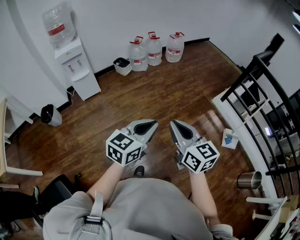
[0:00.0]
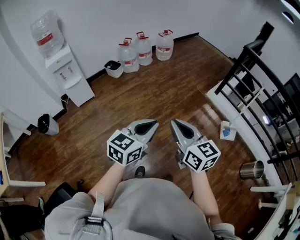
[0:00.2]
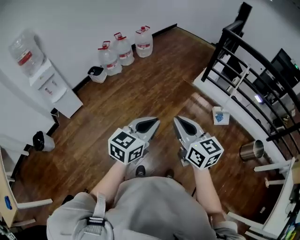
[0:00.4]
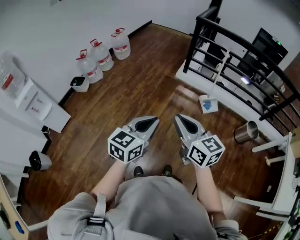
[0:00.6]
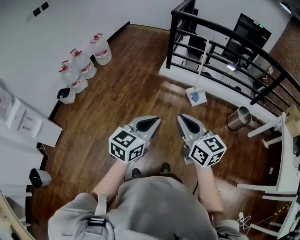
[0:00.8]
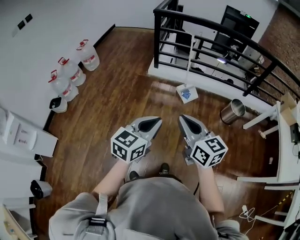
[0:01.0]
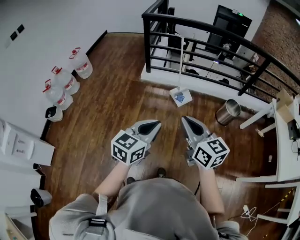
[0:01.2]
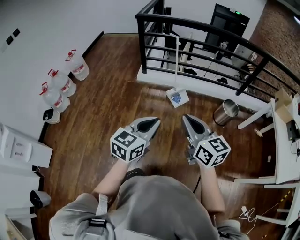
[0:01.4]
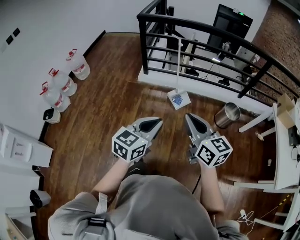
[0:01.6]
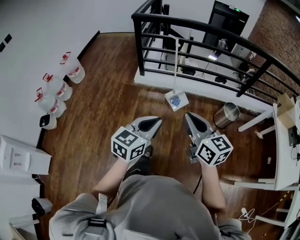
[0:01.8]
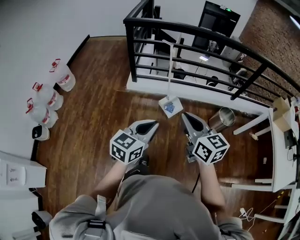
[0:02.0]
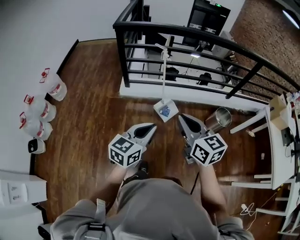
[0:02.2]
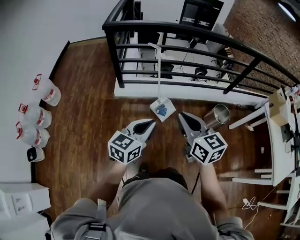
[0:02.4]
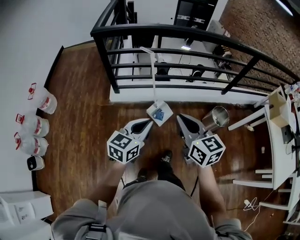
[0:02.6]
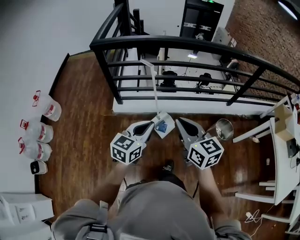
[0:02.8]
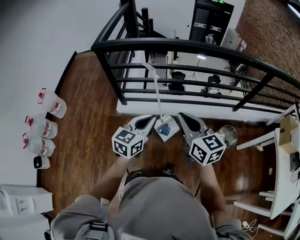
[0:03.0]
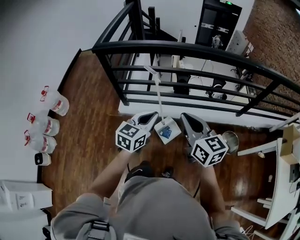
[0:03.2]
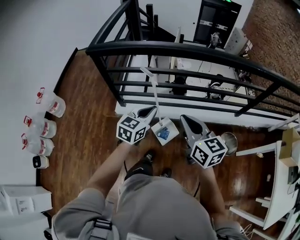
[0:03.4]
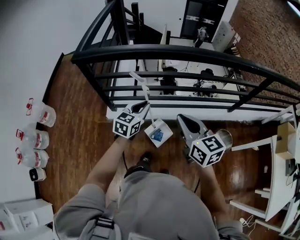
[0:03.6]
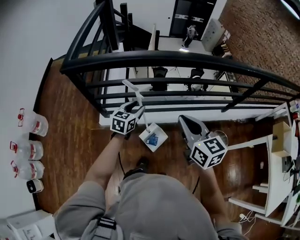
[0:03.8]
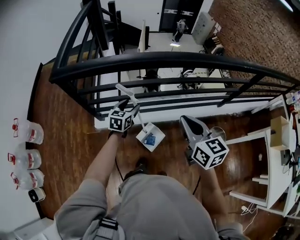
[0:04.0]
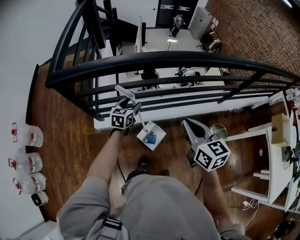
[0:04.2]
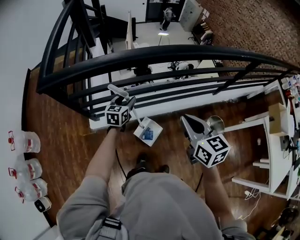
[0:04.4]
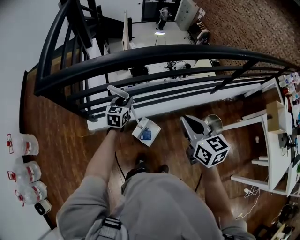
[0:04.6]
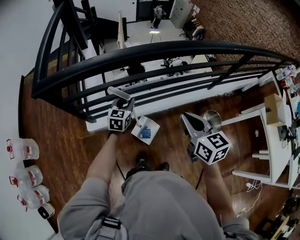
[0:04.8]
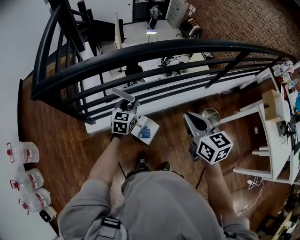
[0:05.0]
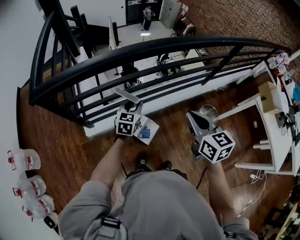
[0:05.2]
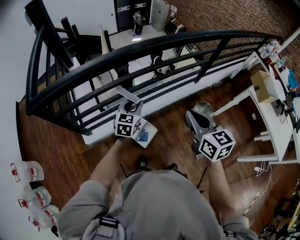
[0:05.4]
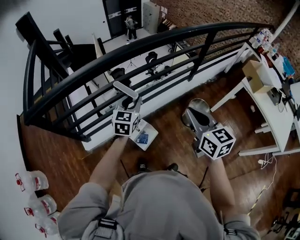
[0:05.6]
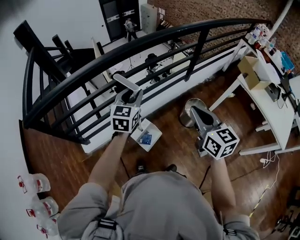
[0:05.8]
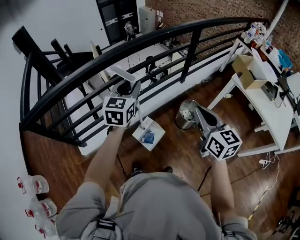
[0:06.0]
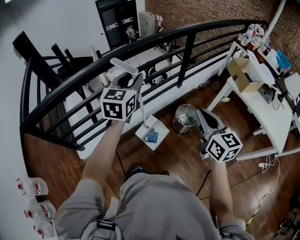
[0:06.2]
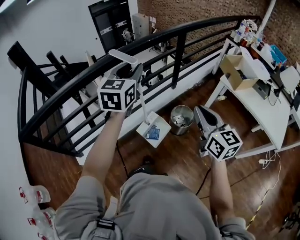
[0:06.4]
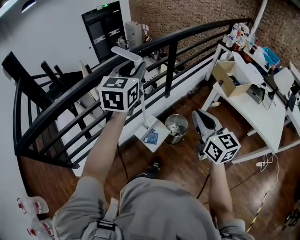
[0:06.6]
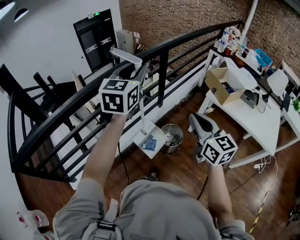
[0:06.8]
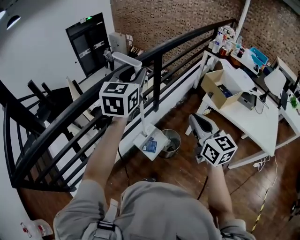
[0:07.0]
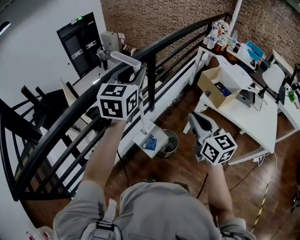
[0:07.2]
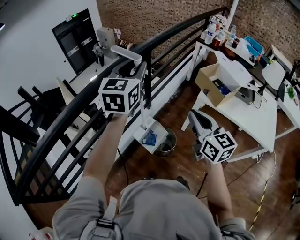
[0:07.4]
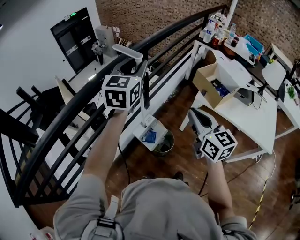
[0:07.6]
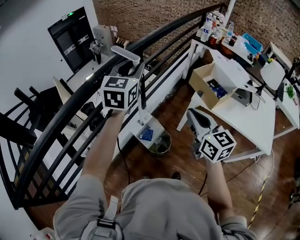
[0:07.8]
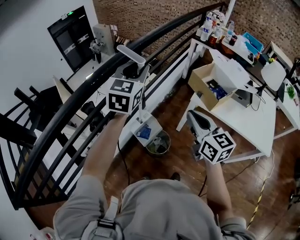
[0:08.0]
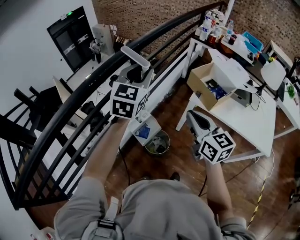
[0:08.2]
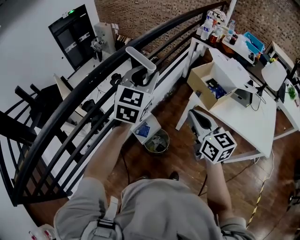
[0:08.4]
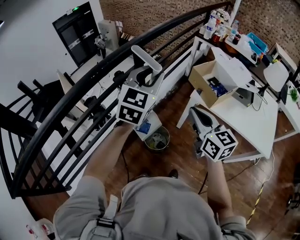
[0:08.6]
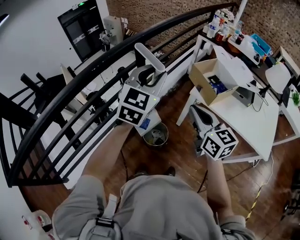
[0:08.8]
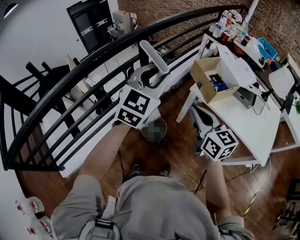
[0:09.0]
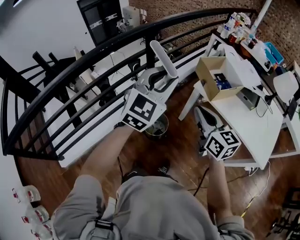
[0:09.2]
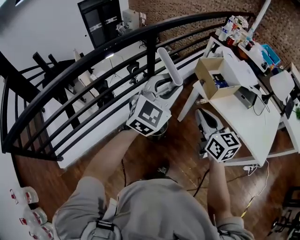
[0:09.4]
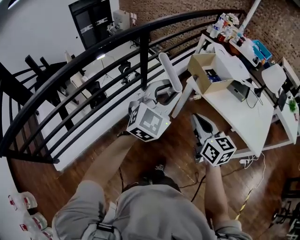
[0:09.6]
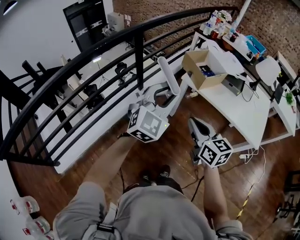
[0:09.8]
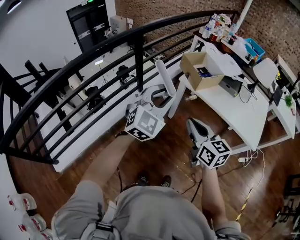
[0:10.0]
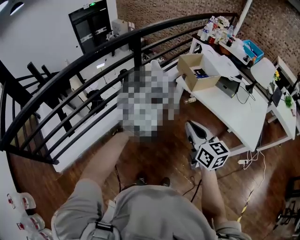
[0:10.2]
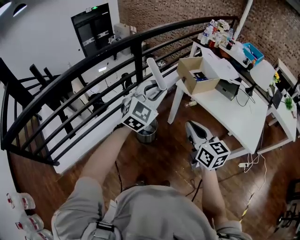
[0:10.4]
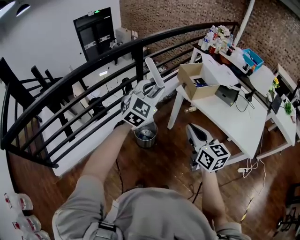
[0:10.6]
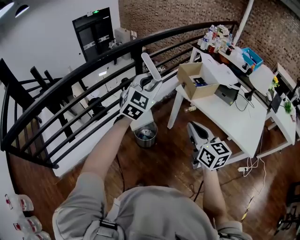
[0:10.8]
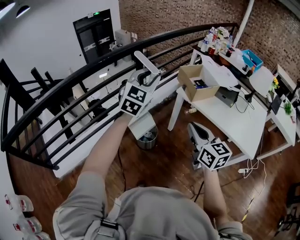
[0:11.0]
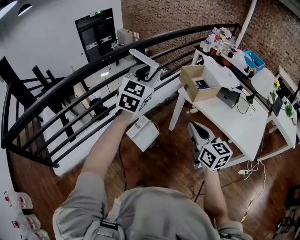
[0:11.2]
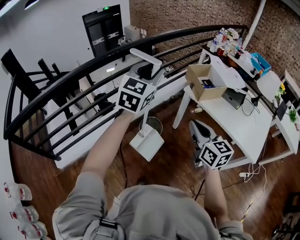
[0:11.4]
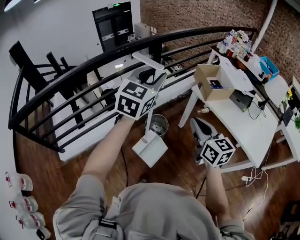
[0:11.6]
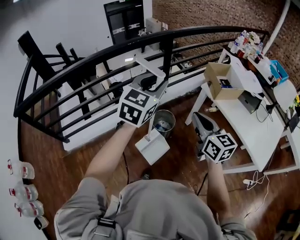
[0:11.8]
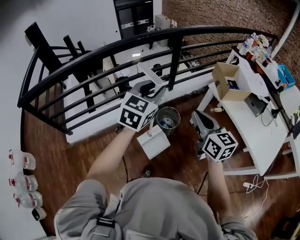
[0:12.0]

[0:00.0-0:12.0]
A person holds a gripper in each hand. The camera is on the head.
0:00.0 to 0:01.6: The two grippers travel together, approximately 50 cm. The right gripper swivels approximately 40 degrees; the left gripper changes its angle by some 40 degrees.
0:01.6 to 0:03.0: Both grippers are carried forward, about 50 cm.
0:03.0 to 0:04.4: The right gripper heads forward, covering about 25 cm, and changes its angle by roughly 20 degrees. The left gripper moves forward and downward, about 40 cm, and opens up.
0:04.4 to 0:06.0: The left gripper moves to the right and upward, about 40 cm, changes its angle by some 30 degrees, and closes; the right gripper moves to the right, roughly 35 cm, and swivels about 30 degrees.
0:06.0 to 0:07.6: The right gripper heads forward and to the right, covering approximately 30 cm, while the left gripper shifts about 50 cm to the right, forward and upward, and rotates some 20 degrees.
0:07.6 to 0:09.0: The right gripper moves to the right, roughly 10 cm. Meanwhile the left gripper is displaced to the right and backward by some 20 cm.
0:09.0 to 0:10.4: The grippers both shift backward and to the right by roughly 20 cm.
0:10.4 to 0:12.0: The right gripper goes roughly 10 cm to the left. The left gripper heads to the left, covering approximately 15 cm, and turns by roughly 30 degrees.

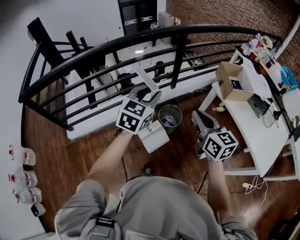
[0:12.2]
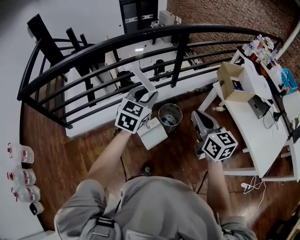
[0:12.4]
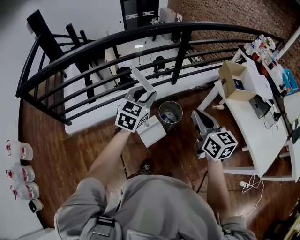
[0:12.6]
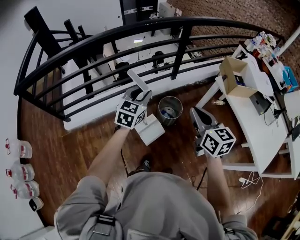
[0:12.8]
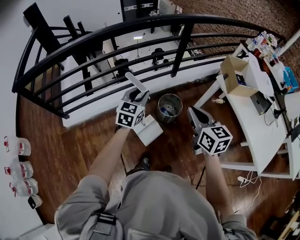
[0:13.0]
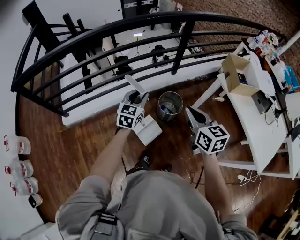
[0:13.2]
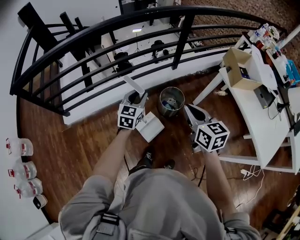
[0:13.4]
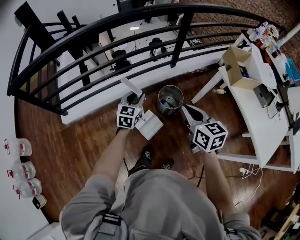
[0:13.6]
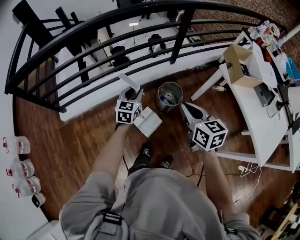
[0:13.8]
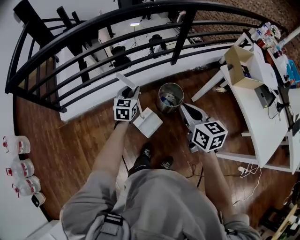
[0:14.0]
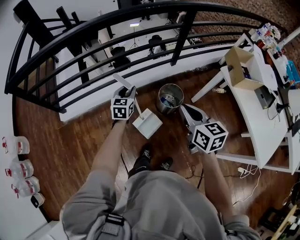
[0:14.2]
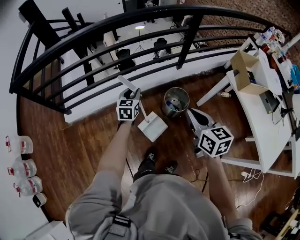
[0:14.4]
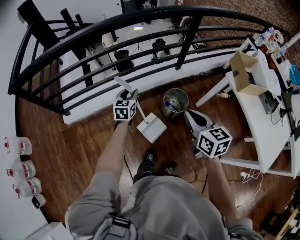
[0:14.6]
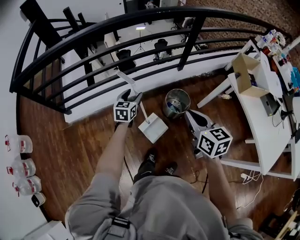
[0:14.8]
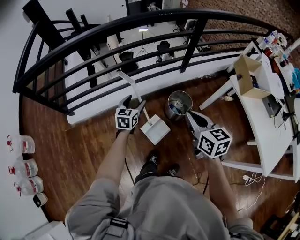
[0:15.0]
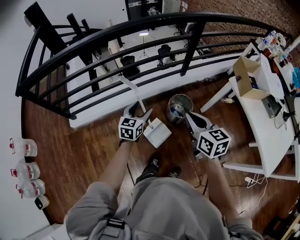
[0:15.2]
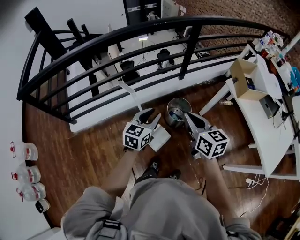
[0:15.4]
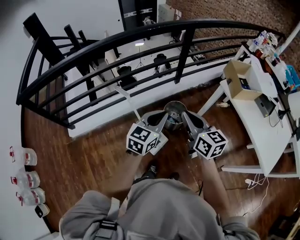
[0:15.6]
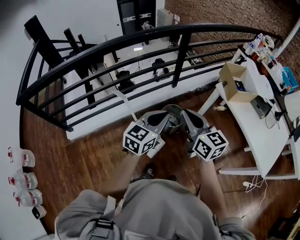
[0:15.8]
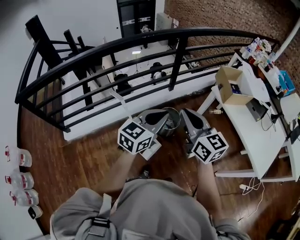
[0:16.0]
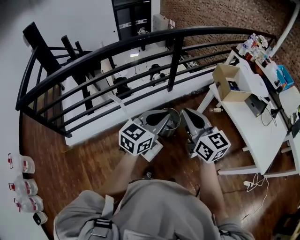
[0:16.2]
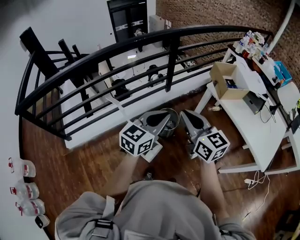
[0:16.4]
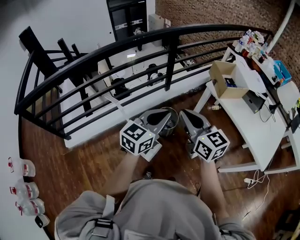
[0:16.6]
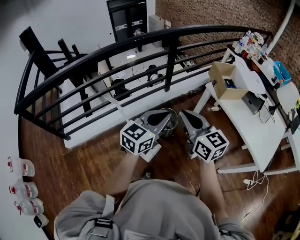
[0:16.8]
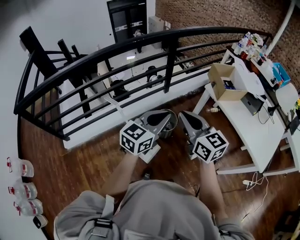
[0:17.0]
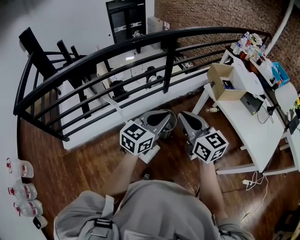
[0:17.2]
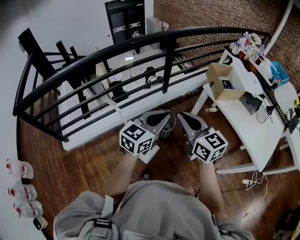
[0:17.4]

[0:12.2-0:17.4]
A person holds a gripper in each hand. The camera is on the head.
0:12.2 to 0:14.0: The left gripper goes roughly 30 cm downward and to the left, and rotates approximately 20 degrees, while the right gripper travels downward and to the left by roughly 15 cm.
0:14.0 to 0:15.6: The right gripper ends up approximately 5 cm from where it was, while the left gripper goes about 20 cm upward, to the right and backward, swivels about 20 degrees, and closes its fingers.
0:15.6 to 0:17.4: The right gripper travels upward and to the right by approximately 10 cm. Meanwhile the left gripper travels to the right and upward by roughly 10 cm.

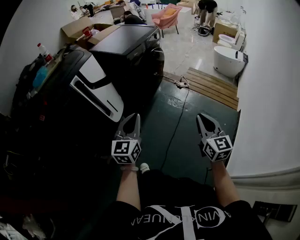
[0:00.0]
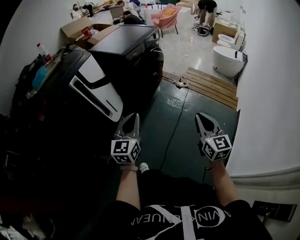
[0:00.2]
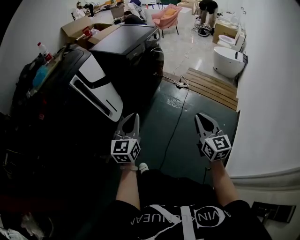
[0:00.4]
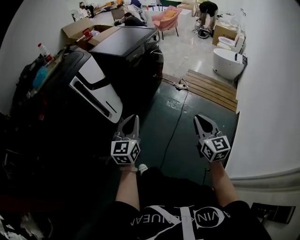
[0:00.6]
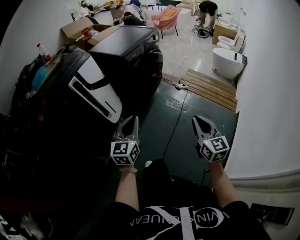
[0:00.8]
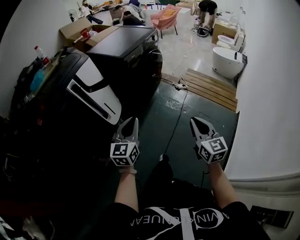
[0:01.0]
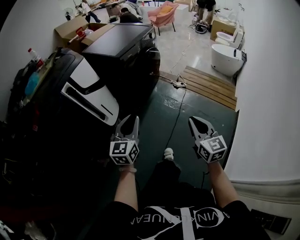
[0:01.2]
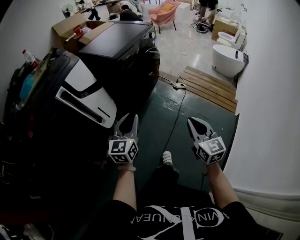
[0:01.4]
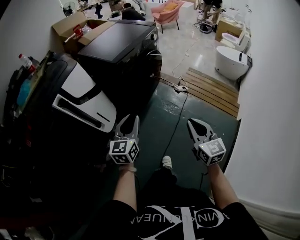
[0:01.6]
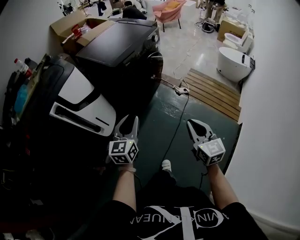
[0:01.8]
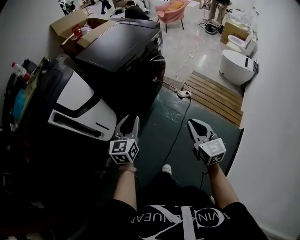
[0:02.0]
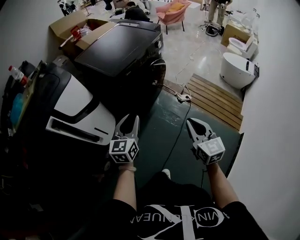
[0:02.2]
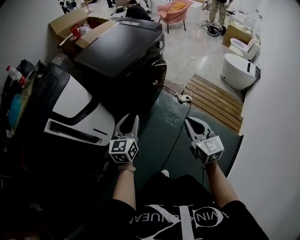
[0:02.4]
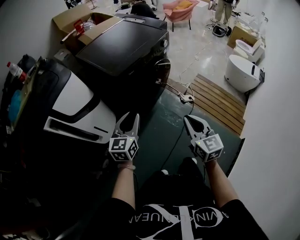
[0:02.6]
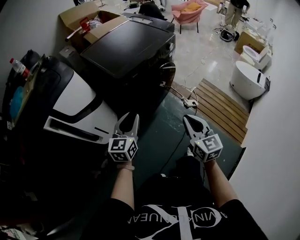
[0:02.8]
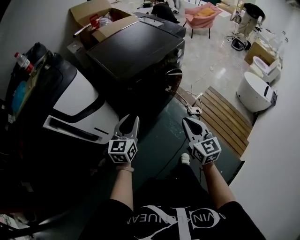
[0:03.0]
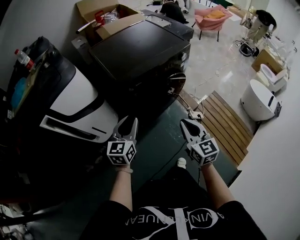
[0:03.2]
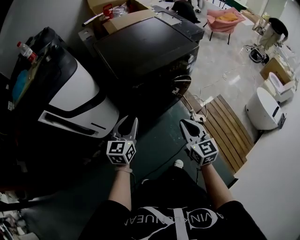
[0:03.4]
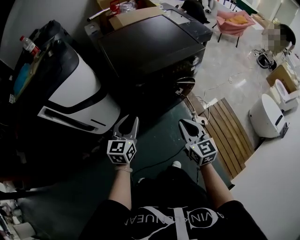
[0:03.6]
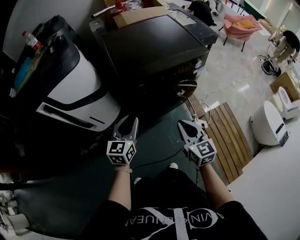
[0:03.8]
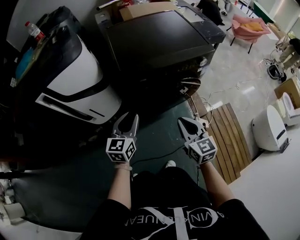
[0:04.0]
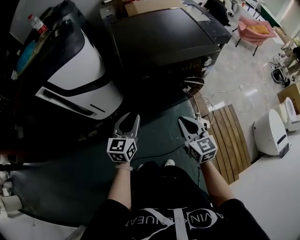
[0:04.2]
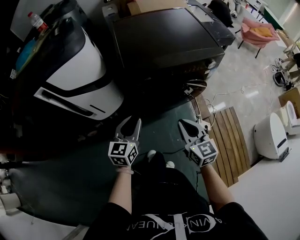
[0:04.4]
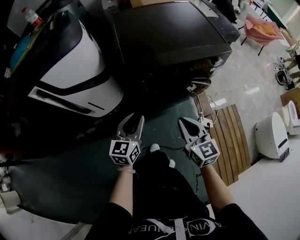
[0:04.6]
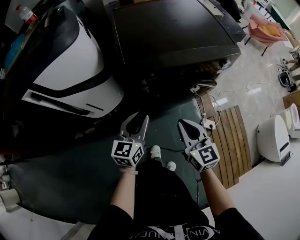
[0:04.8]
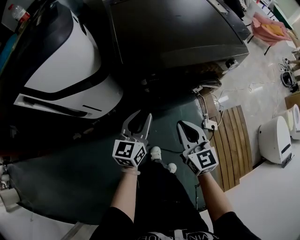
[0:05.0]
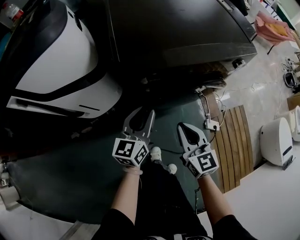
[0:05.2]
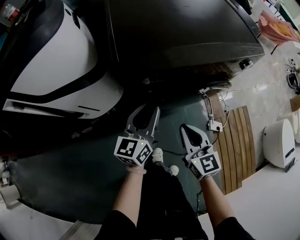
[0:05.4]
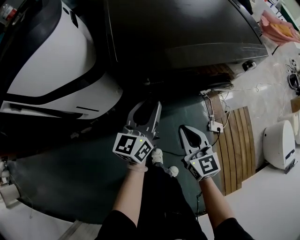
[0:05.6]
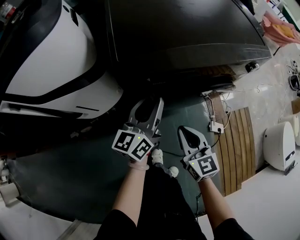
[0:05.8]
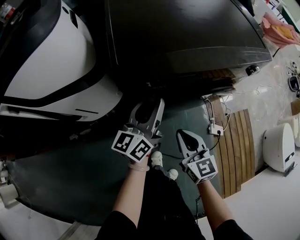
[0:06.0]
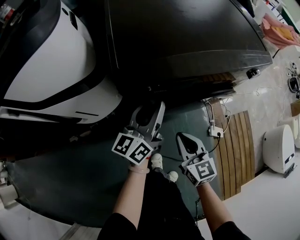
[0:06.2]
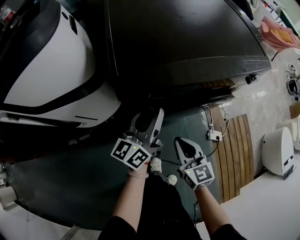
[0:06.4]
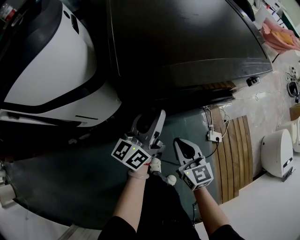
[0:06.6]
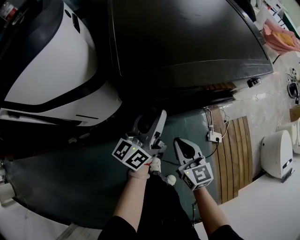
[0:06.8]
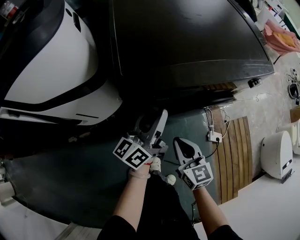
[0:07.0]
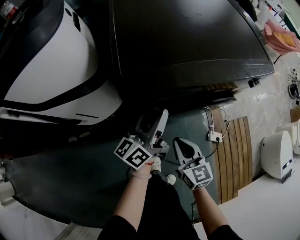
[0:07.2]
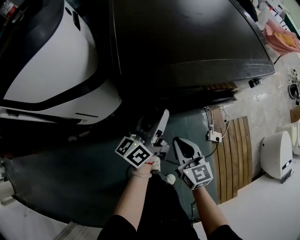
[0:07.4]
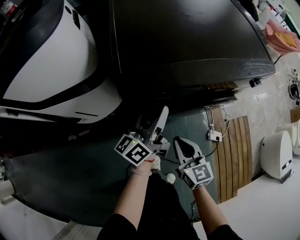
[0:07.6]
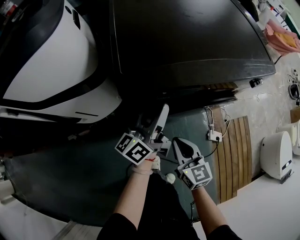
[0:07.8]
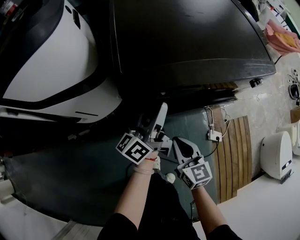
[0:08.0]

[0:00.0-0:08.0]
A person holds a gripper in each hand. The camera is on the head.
0:00.0 to 0:01.6: Both grippers move forward, roughly 15 cm.
0:01.6 to 0:03.2: The two grippers go about 30 cm forward. The right gripper changes its angle by approximately 20 degrees.
0:03.2 to 0:04.8: The right gripper goes some 15 cm forward and downward, and changes its angle by some 20 degrees; the left gripper moves downward, forward and to the right, about 15 cm.
0:04.8 to 0:06.4: The right gripper goes roughly 15 cm downward and forward. The left gripper heads forward, covering approximately 15 cm, and rotates about 30 degrees.
0:06.4 to 0:08.0: The grippers stay close to where they were, moving slightly.
